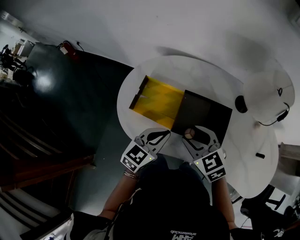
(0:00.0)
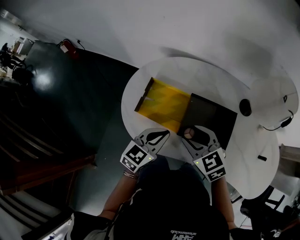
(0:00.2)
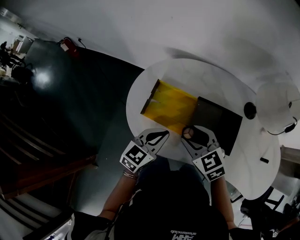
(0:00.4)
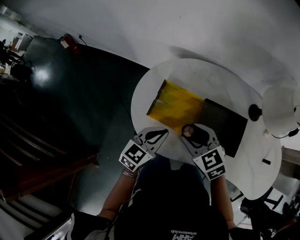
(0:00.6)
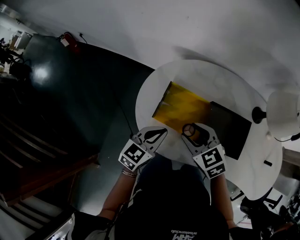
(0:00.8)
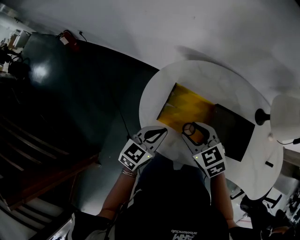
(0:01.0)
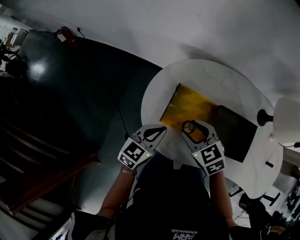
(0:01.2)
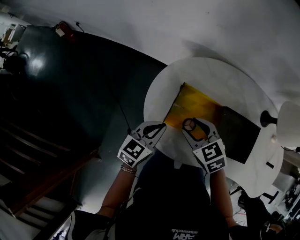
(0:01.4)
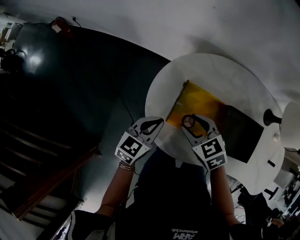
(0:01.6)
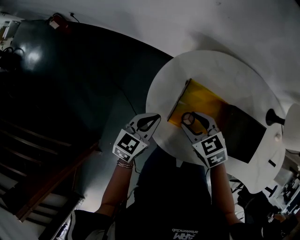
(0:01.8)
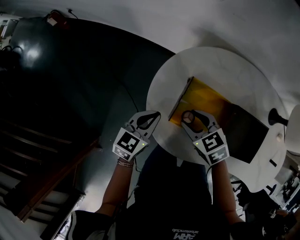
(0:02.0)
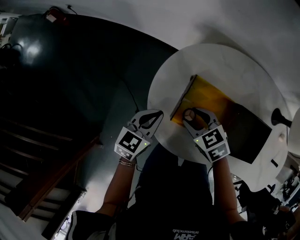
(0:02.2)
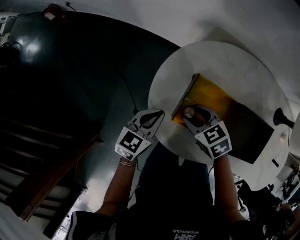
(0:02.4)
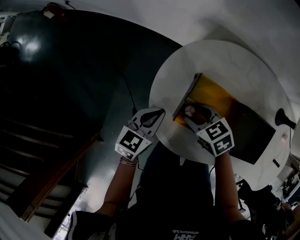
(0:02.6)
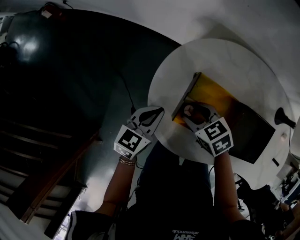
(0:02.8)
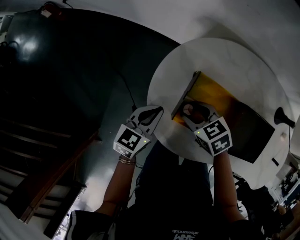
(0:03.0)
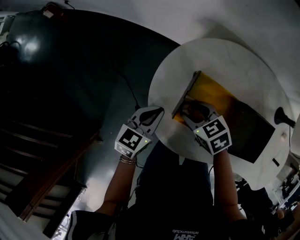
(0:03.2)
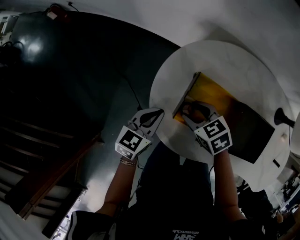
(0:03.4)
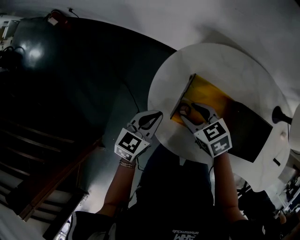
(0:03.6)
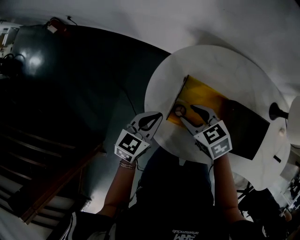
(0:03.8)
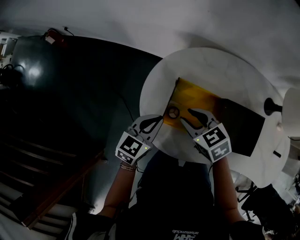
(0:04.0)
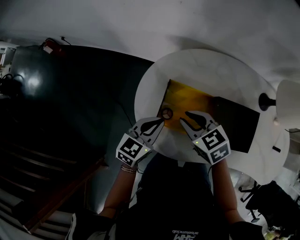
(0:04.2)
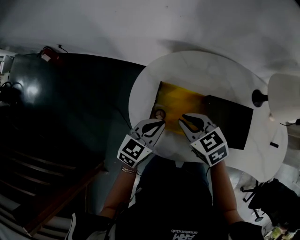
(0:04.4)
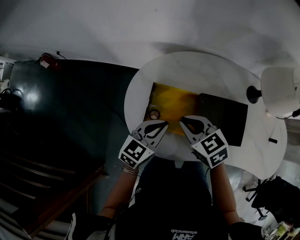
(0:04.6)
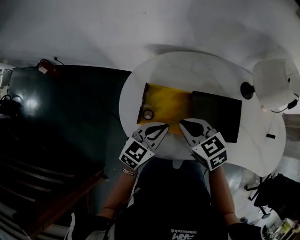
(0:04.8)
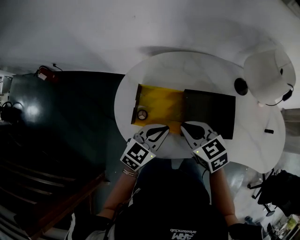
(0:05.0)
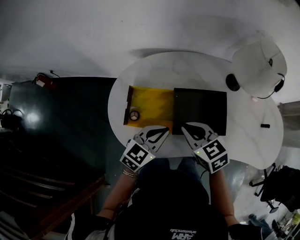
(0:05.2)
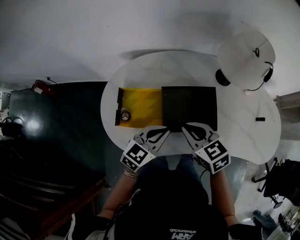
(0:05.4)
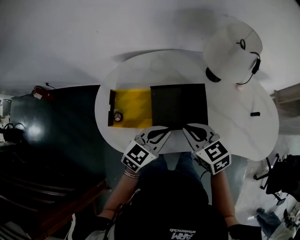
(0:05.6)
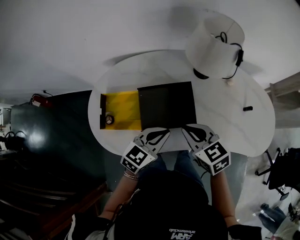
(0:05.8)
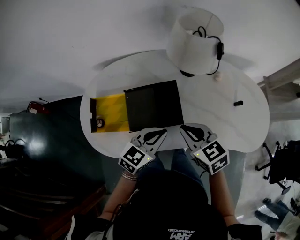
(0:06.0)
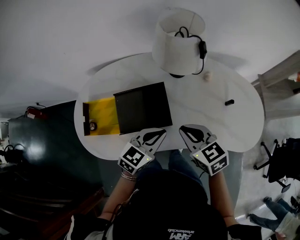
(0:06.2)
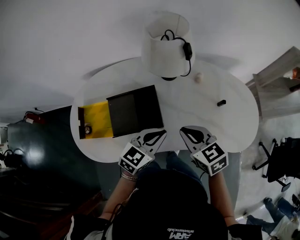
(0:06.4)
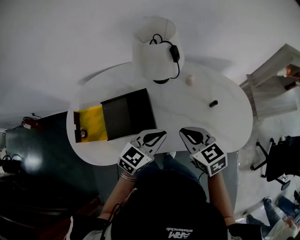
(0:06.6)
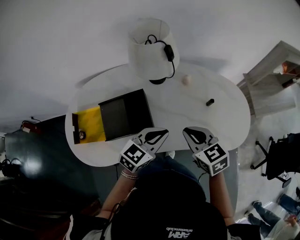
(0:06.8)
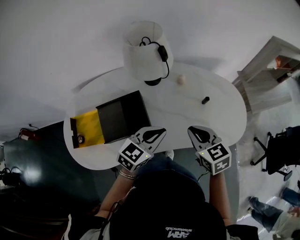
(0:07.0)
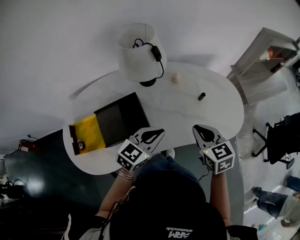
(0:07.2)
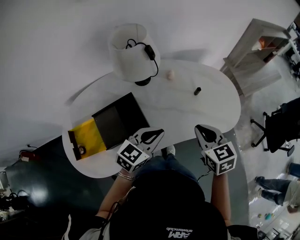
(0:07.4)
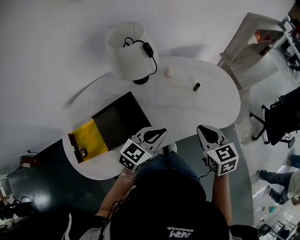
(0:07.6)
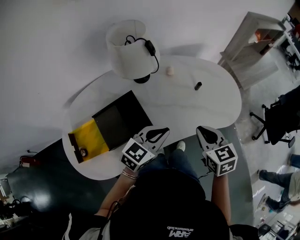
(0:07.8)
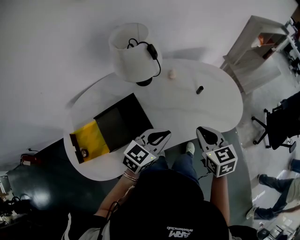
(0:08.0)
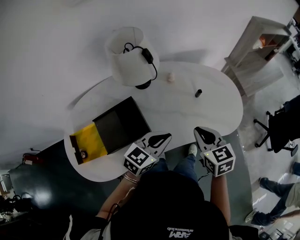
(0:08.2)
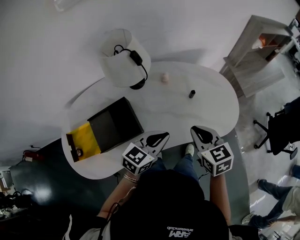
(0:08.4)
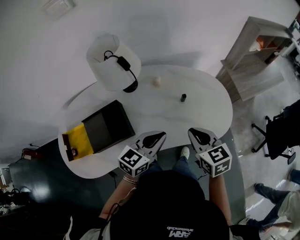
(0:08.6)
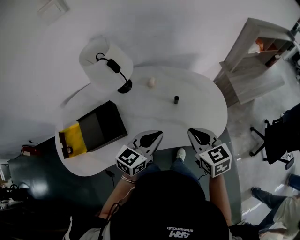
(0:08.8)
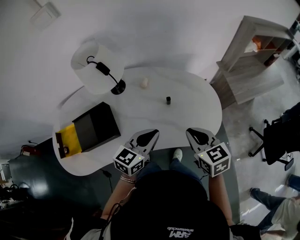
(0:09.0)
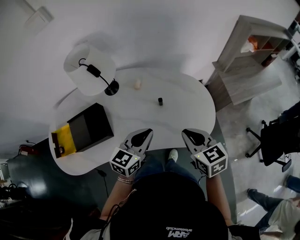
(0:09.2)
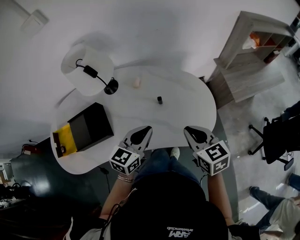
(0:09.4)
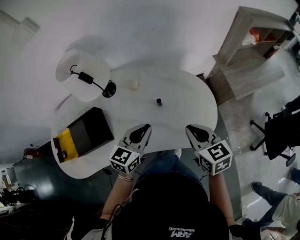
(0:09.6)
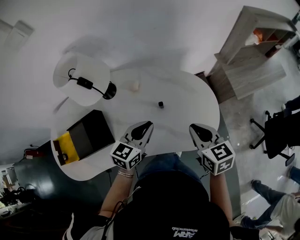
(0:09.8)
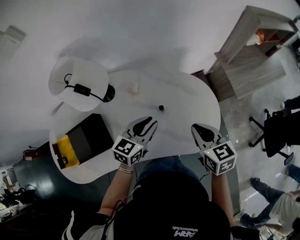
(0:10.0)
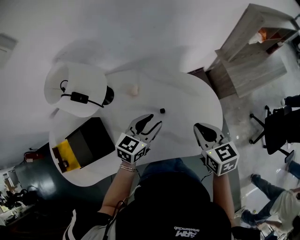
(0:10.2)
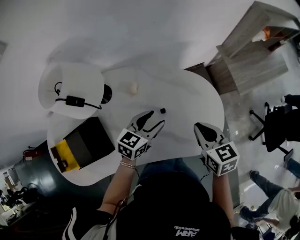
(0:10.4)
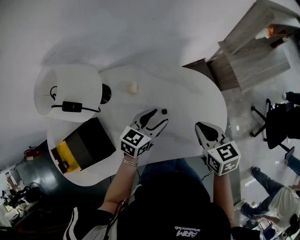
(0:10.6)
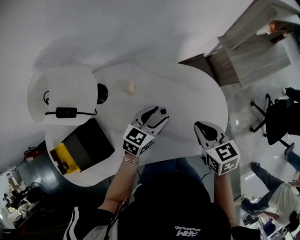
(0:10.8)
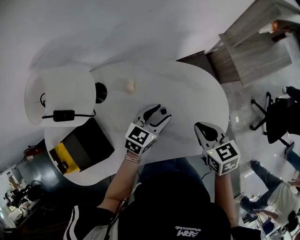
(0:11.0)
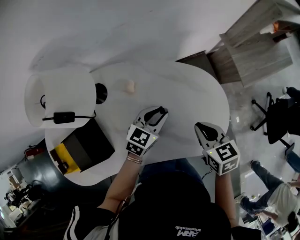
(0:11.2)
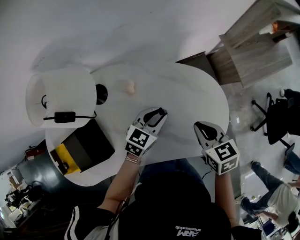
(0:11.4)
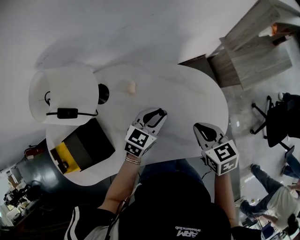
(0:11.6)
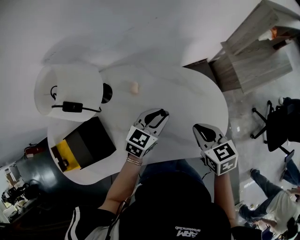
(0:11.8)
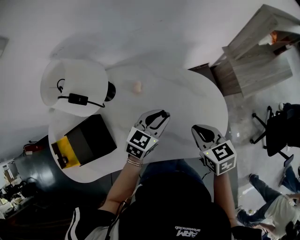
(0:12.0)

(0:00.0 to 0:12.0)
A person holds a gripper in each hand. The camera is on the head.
0:00.0 - 0:01.6: Both grippers move to the left and forward, roughly 25 cm.
0:01.6 - 0:03.0: The right gripper moves downward, about 5 cm. Meanwhile the left gripper changes place by approximately 5 cm.
0:03.0 - 0:04.4: The right gripper shifts some 15 cm upward and to the right, and closes; the left gripper shifts approximately 15 cm to the right and upward.
0:04.4 - 0:06.0: Both grippers travel together to the right, roughly 35 cm. The left gripper swivels roughly 20 degrees; the right gripper turns by approximately 20 degrees.
0:06.0 - 0:07.6: The right gripper shifts by about 20 cm, and rotates some 40 degrees. The left gripper shifts by roughly 15 cm, and turns by roughly 20 degrees.
0:07.6 - 0:09.0: The grippers both shift to the right and forward by about 15 cm.
0:09.0 - 0:10.4: The left gripper goes approximately 15 cm forward and downward, and opens; the right gripper shifts about 10 cm forward.
0:10.4 - 0:12.0: The left gripper closes up.

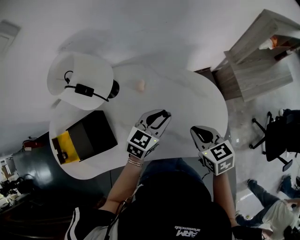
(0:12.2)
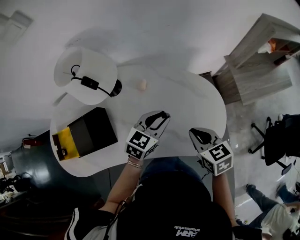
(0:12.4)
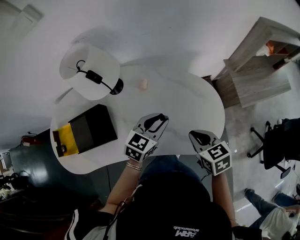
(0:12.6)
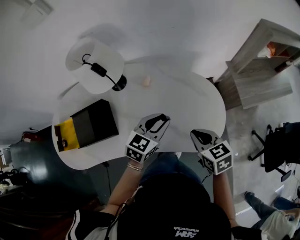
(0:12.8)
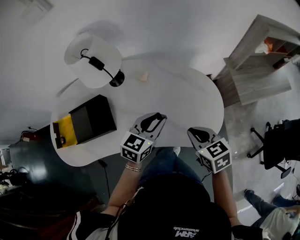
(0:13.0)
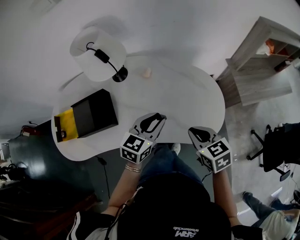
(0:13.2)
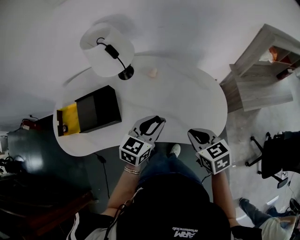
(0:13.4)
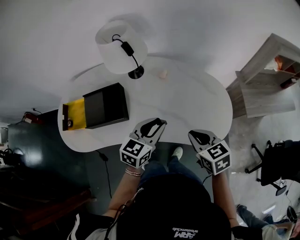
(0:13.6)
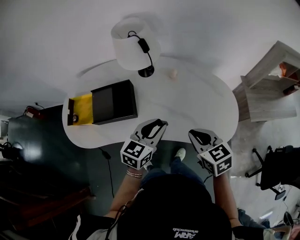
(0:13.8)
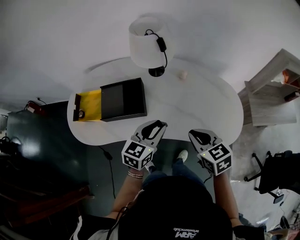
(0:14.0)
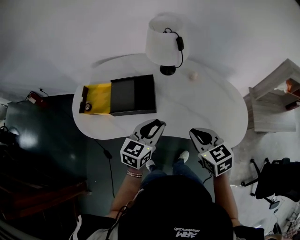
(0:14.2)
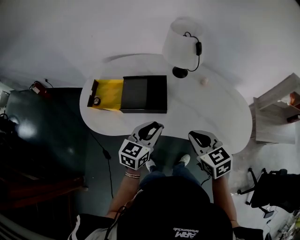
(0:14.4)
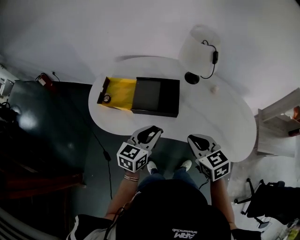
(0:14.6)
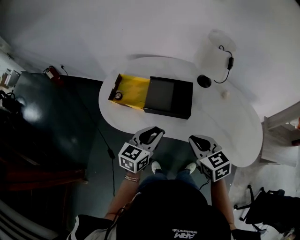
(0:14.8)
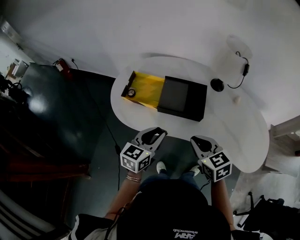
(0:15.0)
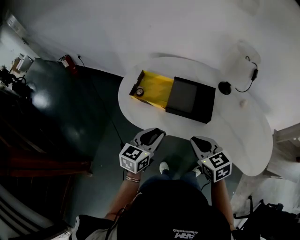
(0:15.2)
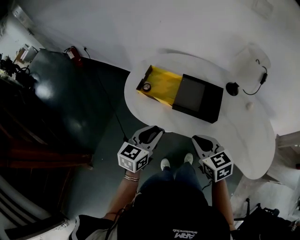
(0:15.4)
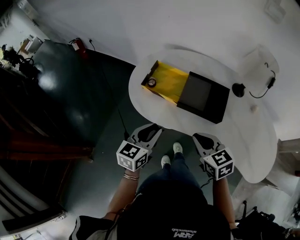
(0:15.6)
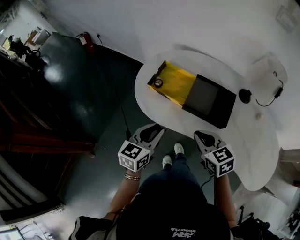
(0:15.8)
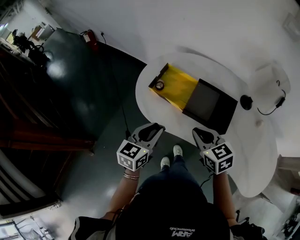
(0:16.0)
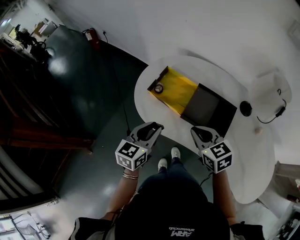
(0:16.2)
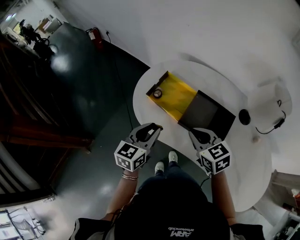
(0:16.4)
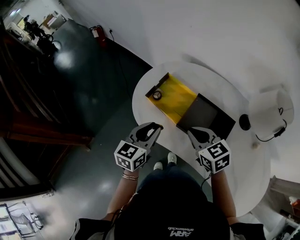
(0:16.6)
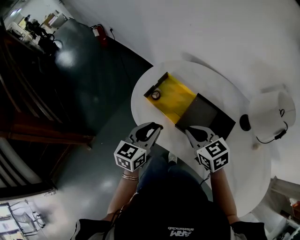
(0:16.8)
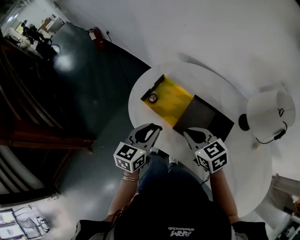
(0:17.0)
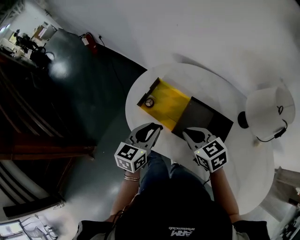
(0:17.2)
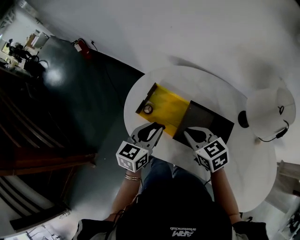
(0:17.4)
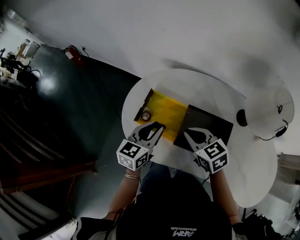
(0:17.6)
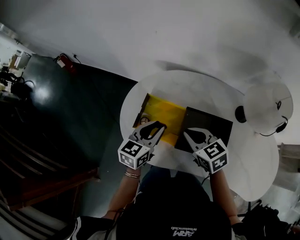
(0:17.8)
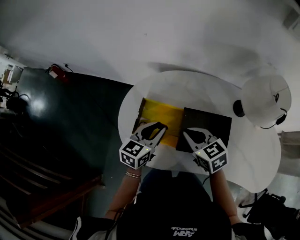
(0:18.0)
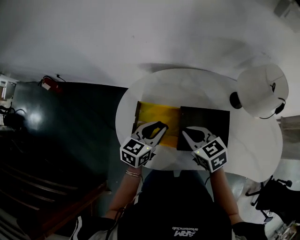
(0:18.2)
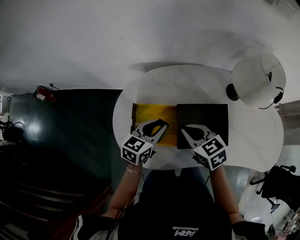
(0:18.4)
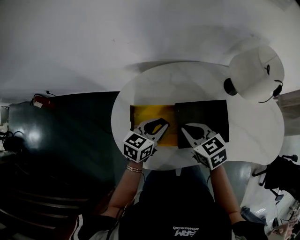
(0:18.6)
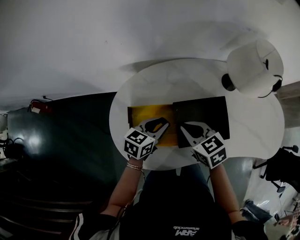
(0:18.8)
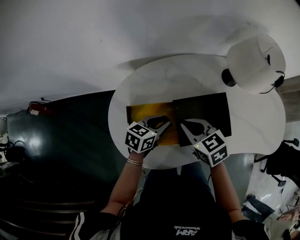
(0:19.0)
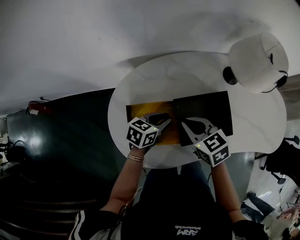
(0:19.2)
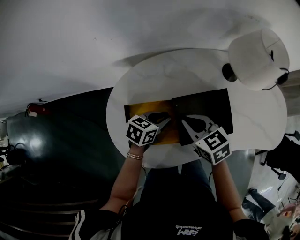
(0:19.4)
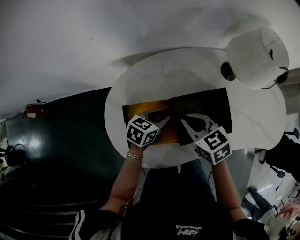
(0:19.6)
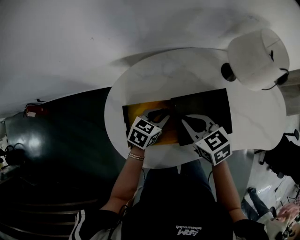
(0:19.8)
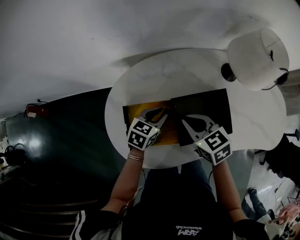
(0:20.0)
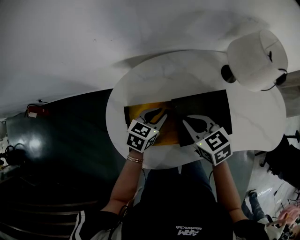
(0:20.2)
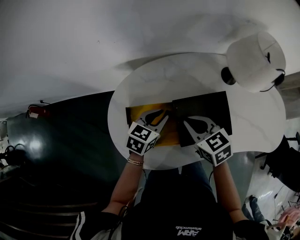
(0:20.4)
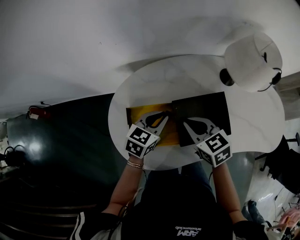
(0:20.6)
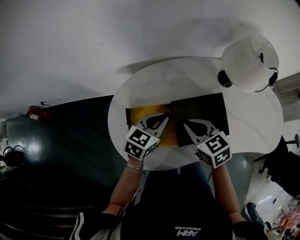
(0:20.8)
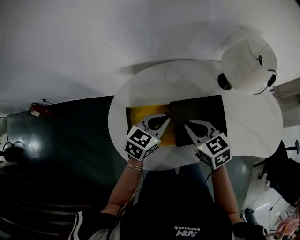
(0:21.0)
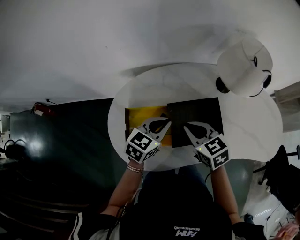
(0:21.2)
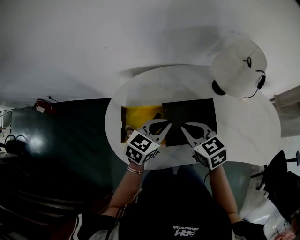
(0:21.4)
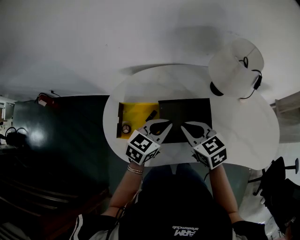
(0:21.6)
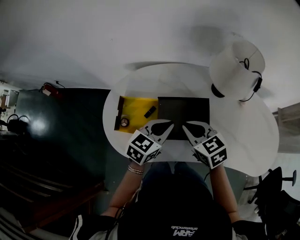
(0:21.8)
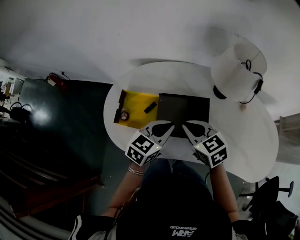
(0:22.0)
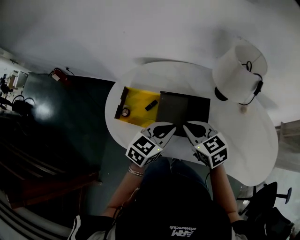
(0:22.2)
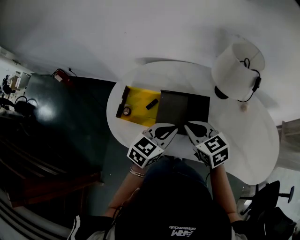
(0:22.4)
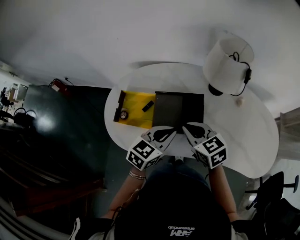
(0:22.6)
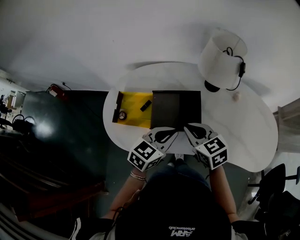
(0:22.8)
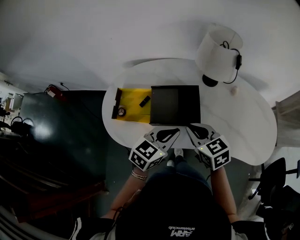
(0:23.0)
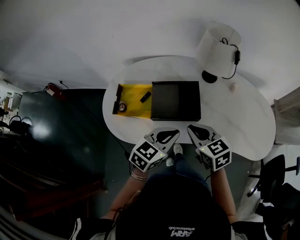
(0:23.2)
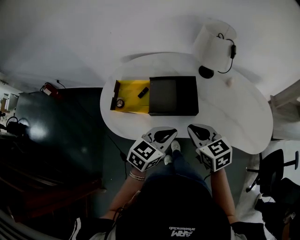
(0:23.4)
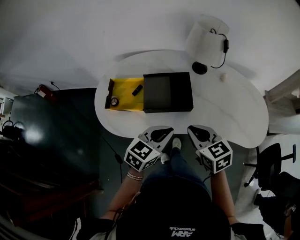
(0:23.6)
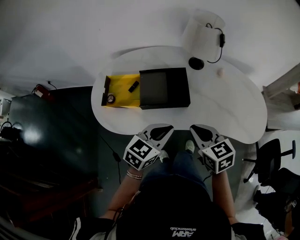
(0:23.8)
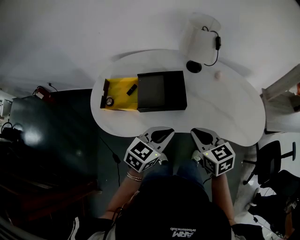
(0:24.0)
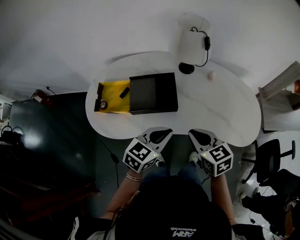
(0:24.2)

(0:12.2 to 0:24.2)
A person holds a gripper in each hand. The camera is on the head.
0:12.2 - 0:13.8: Both grippers move backward, to the left and upward, approximately 20 cm. The left gripper rotates roughly 20 degrees.
0:13.8 - 0:15.2: The two grippers go approximately 35 cm to the left. The left gripper swivels about 30 degrees; the right gripper rotates approximately 20 degrees.
0:15.2 - 0:16.6: The right gripper travels forward by about 15 cm, and changes its angle by roughly 20 degrees. The left gripper shifts about 10 cm forward, and turns by about 20 degrees.
0:16.6 - 0:18.2: The left gripper shifts by some 20 cm, and turns by approximately 40 degrees, while the right gripper changes place by some 10 cm, and turns by about 30 degrees.
0:18.2 - 0:19.8: The left gripper travels downward by approximately 10 cm, and changes its angle by some 30 degrees.
0:19.8 - 0:21.2: The right gripper moves some 5 cm. Meanwhile the left gripper heads upward, covering some 10 cm, and closes up.
0:21.2 - 0:22.6: Both grippers travel together to the right and backward, roughly 15 cm.
0:22.6 - 0:24.2: The grippers both shift backward and to the right by some 15 cm.
